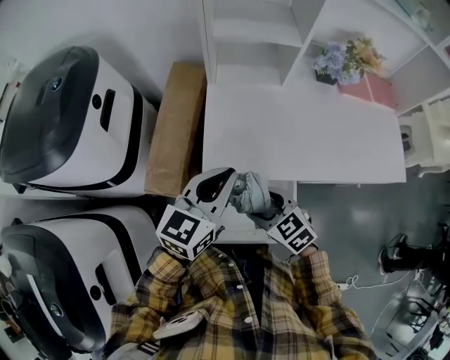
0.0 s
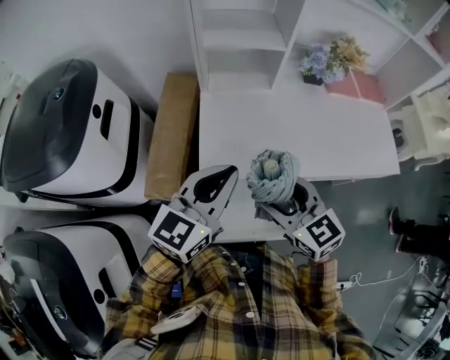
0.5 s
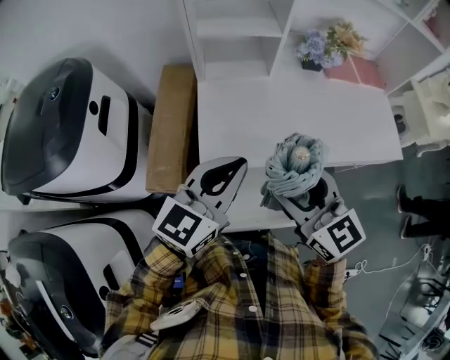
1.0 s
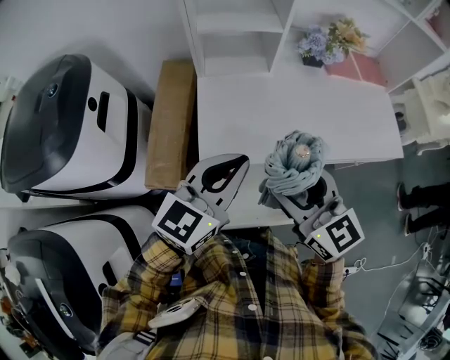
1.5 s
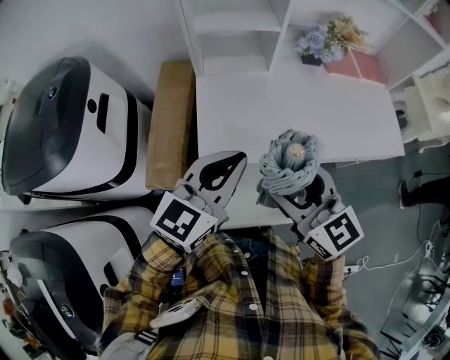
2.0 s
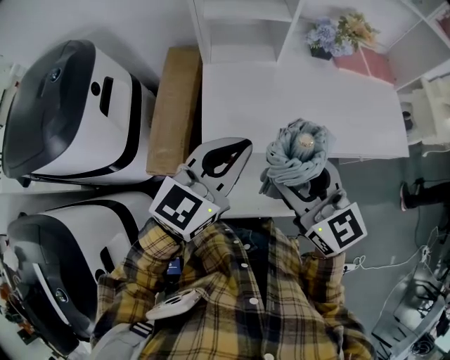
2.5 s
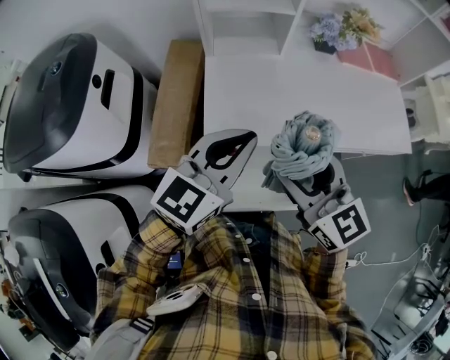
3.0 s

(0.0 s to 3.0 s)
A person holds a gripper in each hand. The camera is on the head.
0.0 s - 1.5 s: The left gripper heads upward, covering approximately 5 cm; the right gripper is displaced upward by about 20 cm, and angles its fingers upward, by some 30 degrees.
1.5 s - 3.0 s: The two grippers keep their place.

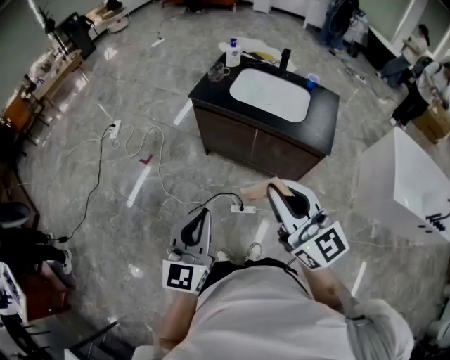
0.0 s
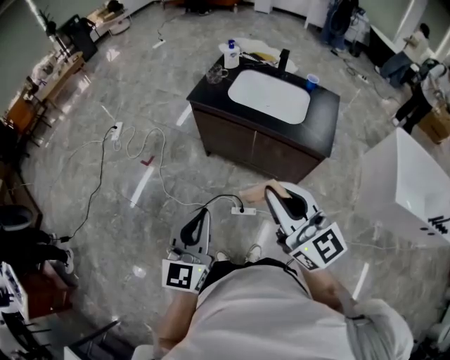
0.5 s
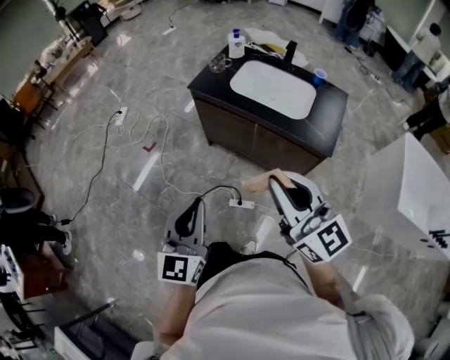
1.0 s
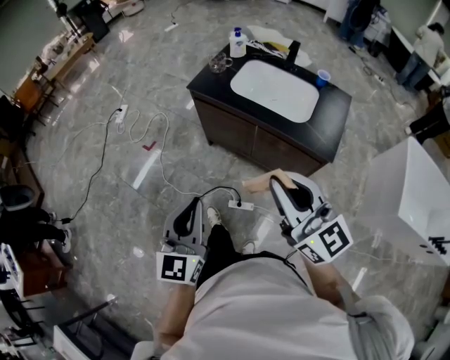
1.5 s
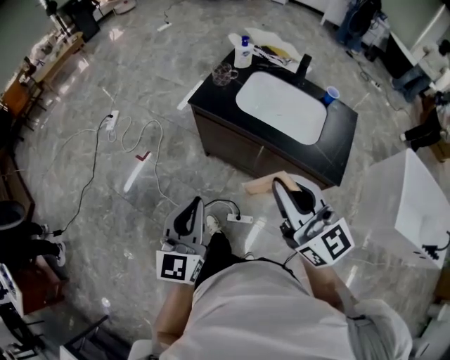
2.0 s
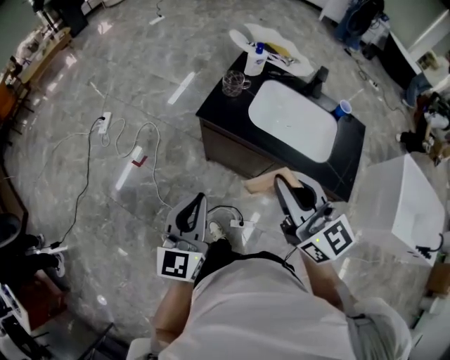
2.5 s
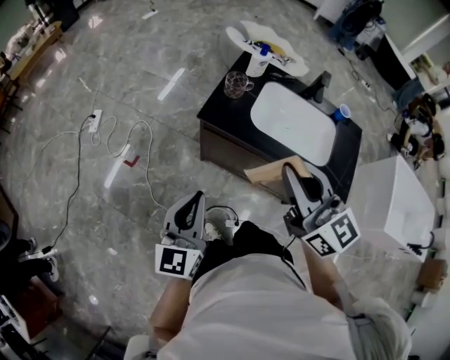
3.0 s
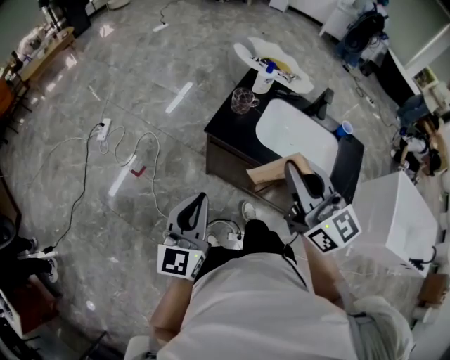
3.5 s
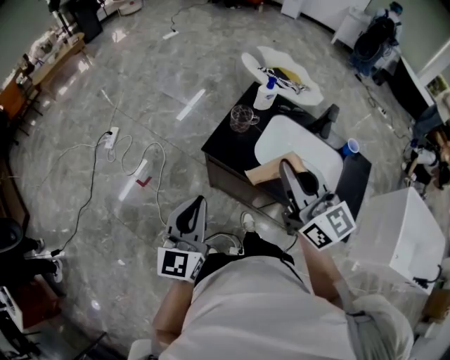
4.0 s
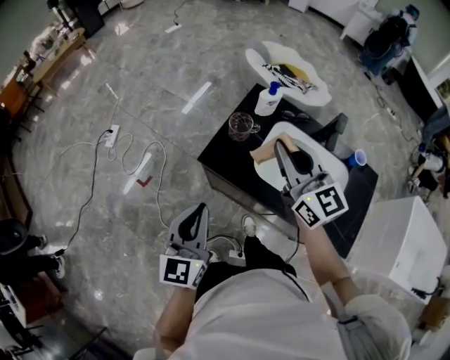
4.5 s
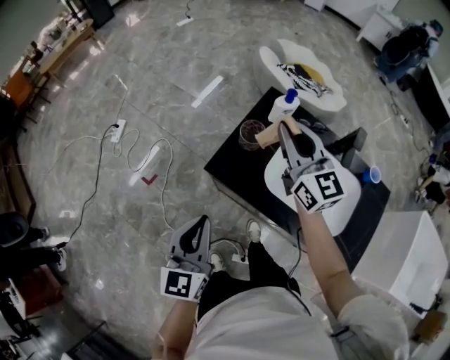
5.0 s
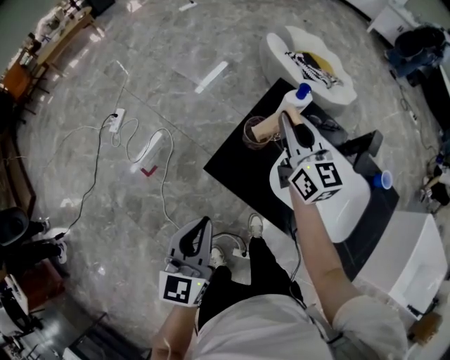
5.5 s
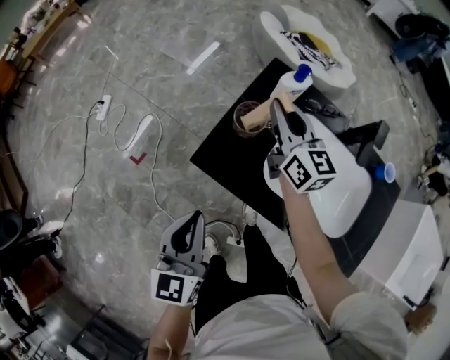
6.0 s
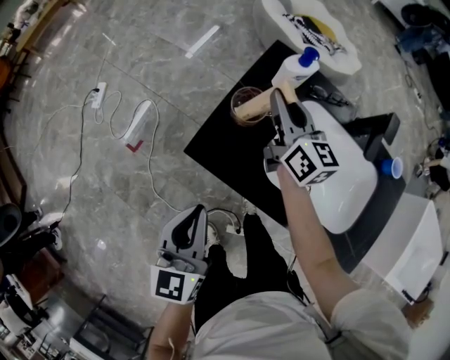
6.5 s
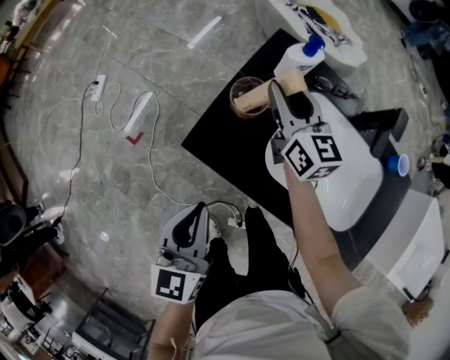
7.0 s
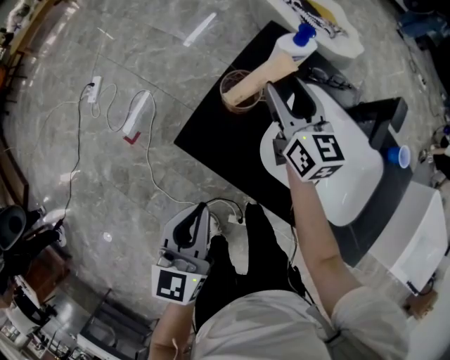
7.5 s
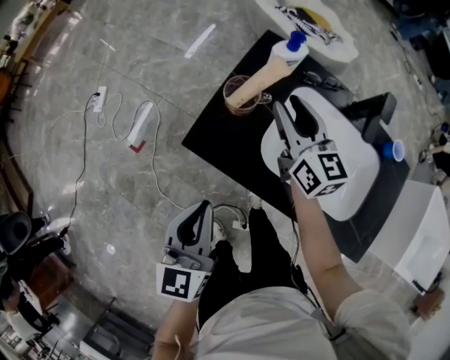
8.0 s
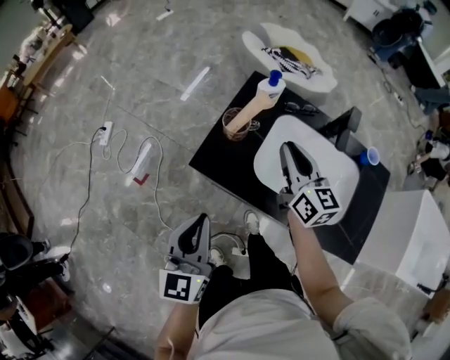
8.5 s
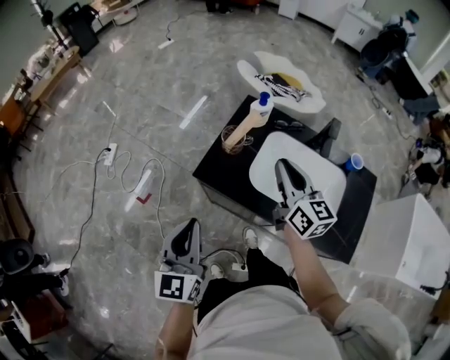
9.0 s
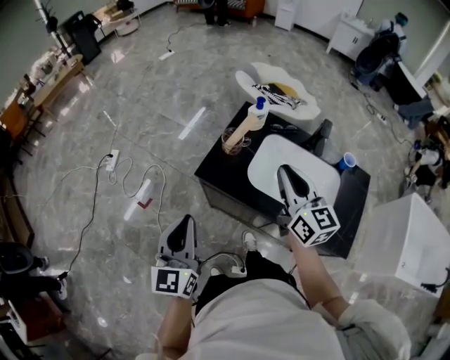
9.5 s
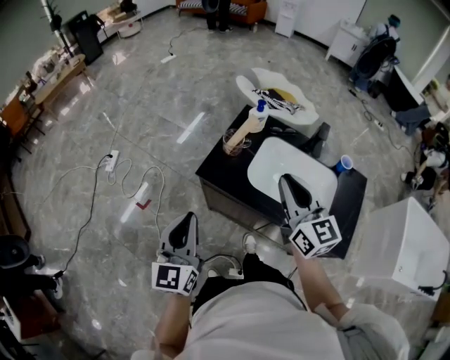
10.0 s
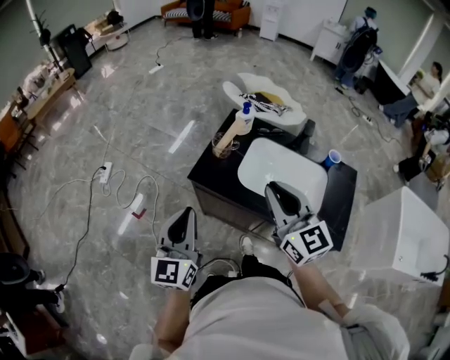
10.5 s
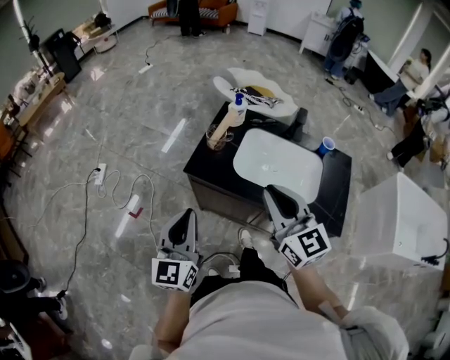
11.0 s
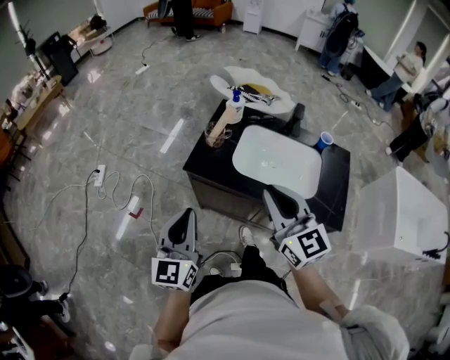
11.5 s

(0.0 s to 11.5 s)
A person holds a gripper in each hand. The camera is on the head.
0.0 s - 2.0 s: The grippers both shift forward by some 15 cm.
2.0 s - 4.0 s: The two grippers go roughly 25 cm forward.
4.0 s - 6.0 s: The right gripper heads forward and downward, covering roughly 35 cm. The left gripper goes about 15 cm forward and downward.
6.0 s - 7.5 s: The right gripper is displaced downward by roughly 5 cm, and opens. Meanwhile the left gripper moves approximately 5 cm.
7.5 s - 9.5 s: The left gripper heads upward, backward and to the left, covering roughly 20 cm. The right gripper heads backward and upward, covering roughly 30 cm, and closes up.
9.5 s - 11.5 s: The right gripper moves backward, roughly 15 cm.

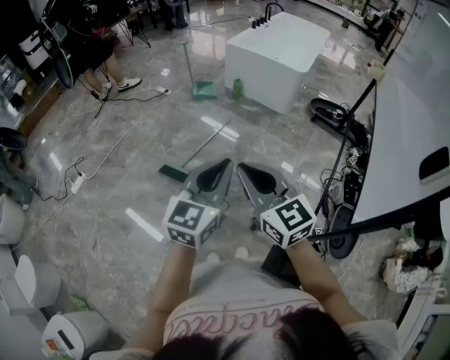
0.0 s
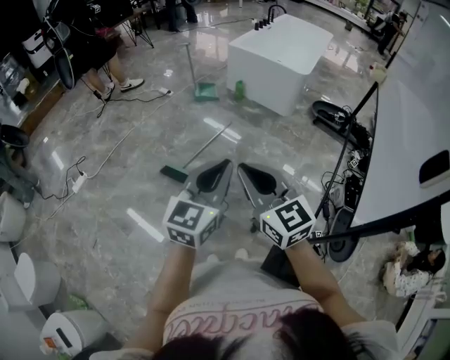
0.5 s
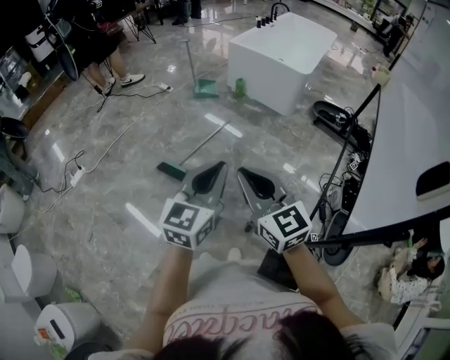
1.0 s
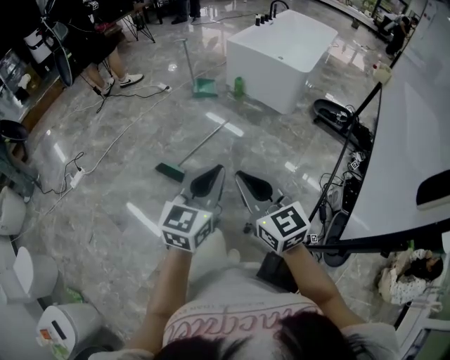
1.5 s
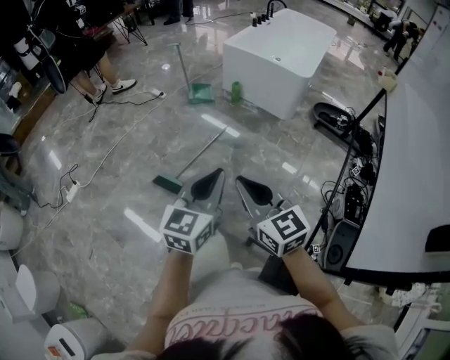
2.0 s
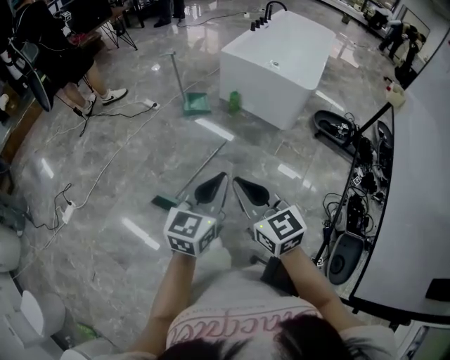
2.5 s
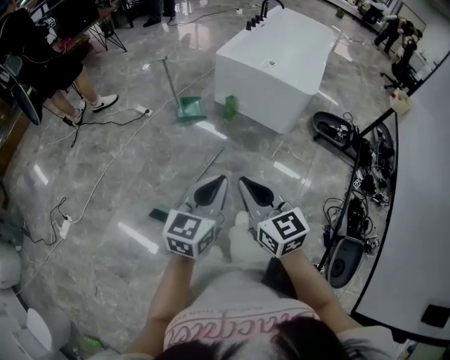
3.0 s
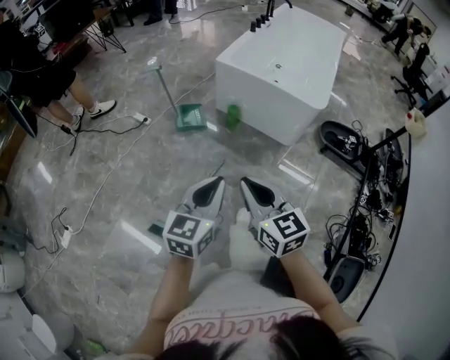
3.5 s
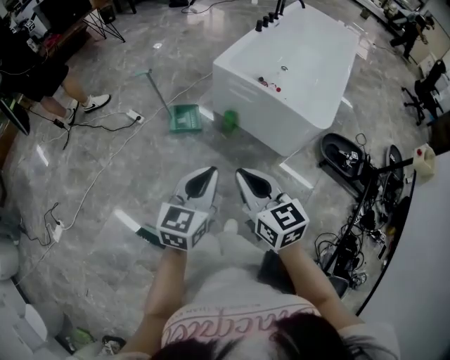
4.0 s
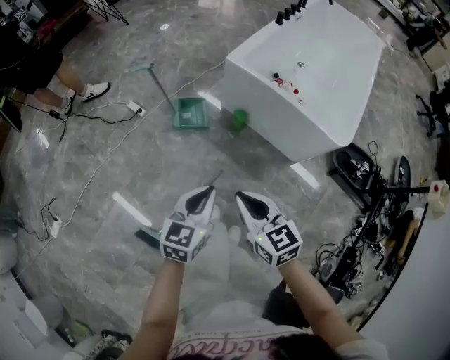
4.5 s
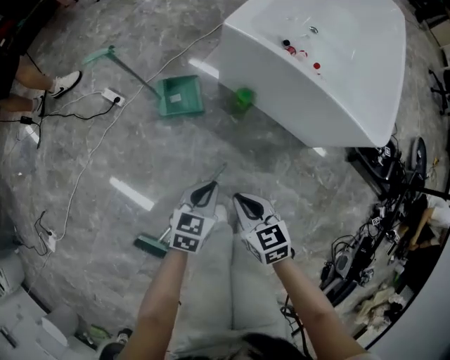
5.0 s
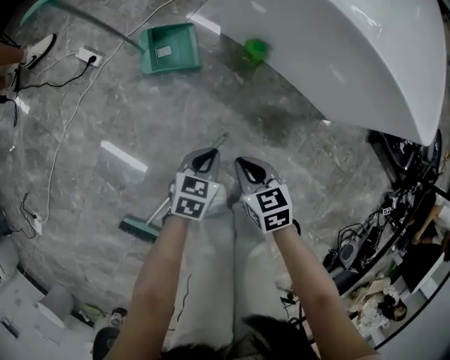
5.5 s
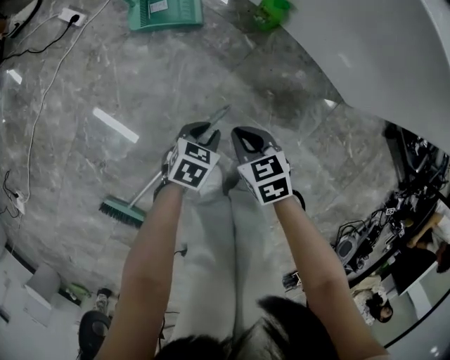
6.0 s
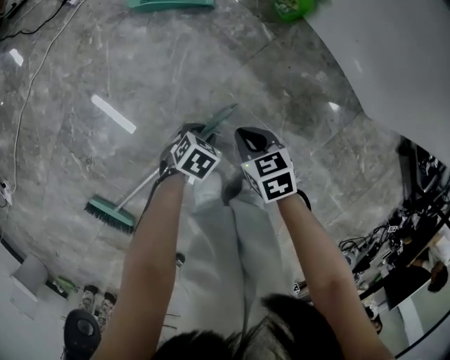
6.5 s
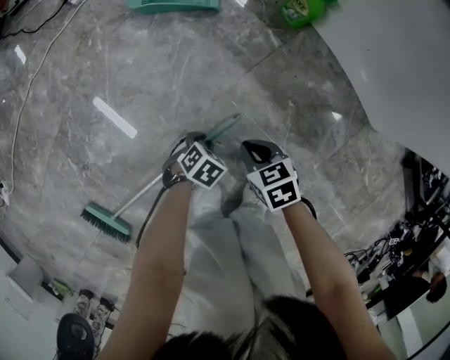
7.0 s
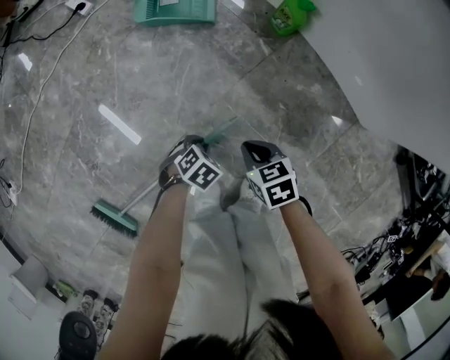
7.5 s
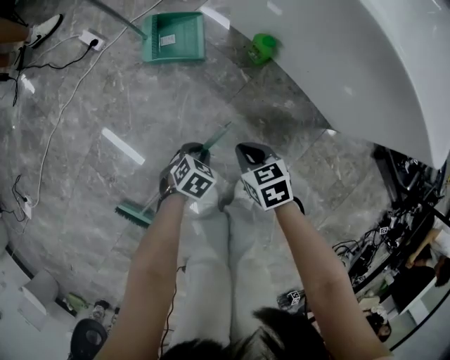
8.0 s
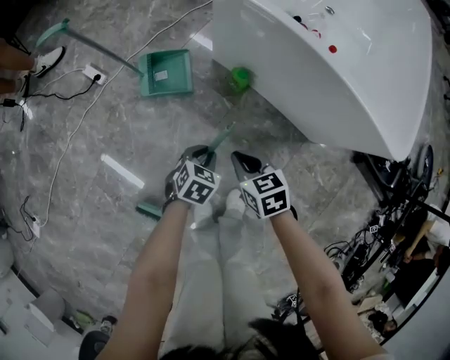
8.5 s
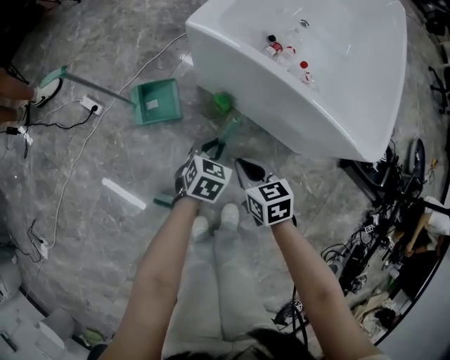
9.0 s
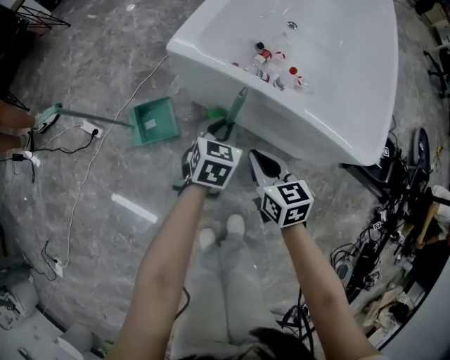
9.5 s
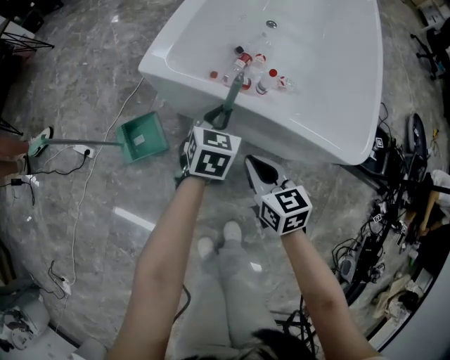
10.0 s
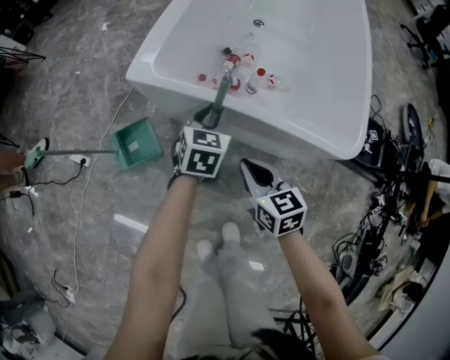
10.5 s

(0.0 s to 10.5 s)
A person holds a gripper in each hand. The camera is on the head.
0.0 s - 2.0 s: The two grippers go some 10 cm forward.
2.0 s - 4.0 s: The pair of grippers is taken forward, roughly 40 cm.
4.0 s - 6.5 s: The two grippers go roughly 70 cm downward. The left gripper tips its fingers downward by some 50 degrees, and opens. The right gripper tilts its fingers some 40 degrees downward.
6.5 s - 8.5 s: The grippers both shift upward by some 20 cm.
8.5 s - 10.5 s: The left gripper shifts some 35 cm forward, upward and to the right, and changes its angle by approximately 20 degrees. Meanwhile the right gripper heads to the right, upward and forward, covering about 20 cm, and changes its angle by roughly 30 degrees.

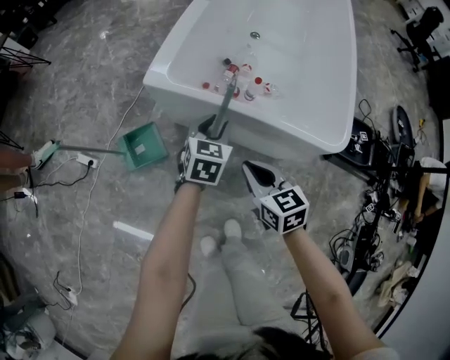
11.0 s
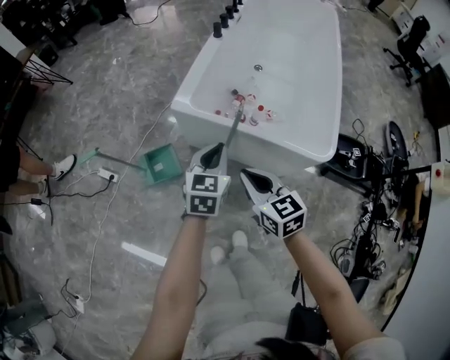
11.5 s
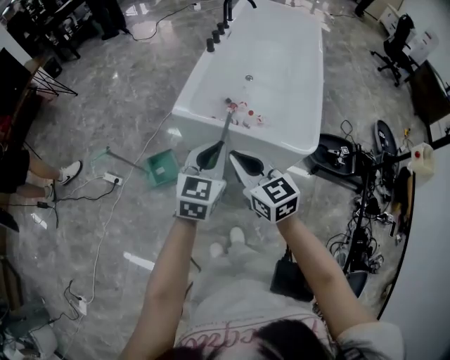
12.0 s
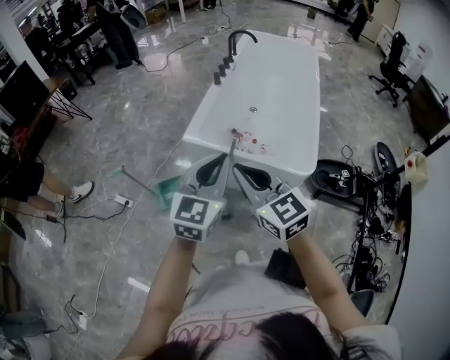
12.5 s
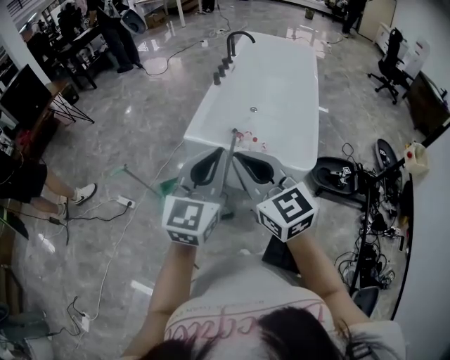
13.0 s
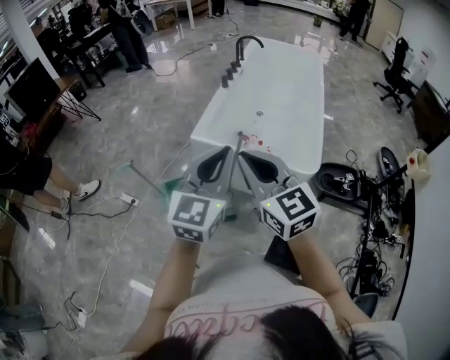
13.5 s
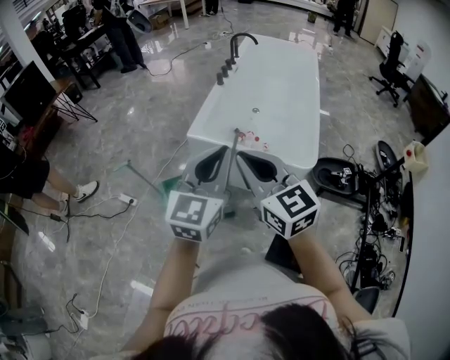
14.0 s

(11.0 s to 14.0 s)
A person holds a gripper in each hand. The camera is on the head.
11.0 s - 12.5 s: The right gripper is displaced upward by about 30 cm, and rotates some 30 degrees, while the left gripper moves upward and backward, roughly 40 cm, angles its fingers upward, by some 30 degrees, and closes its fingers.
12.5 s - 14.0 s: The left gripper ends up some 5 cm from where it was.
